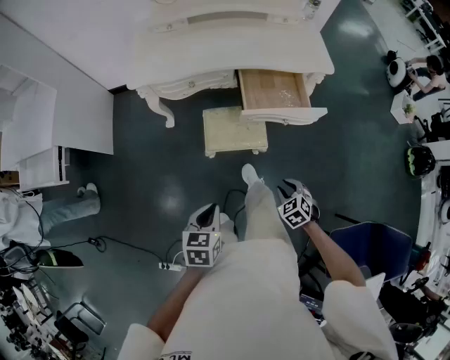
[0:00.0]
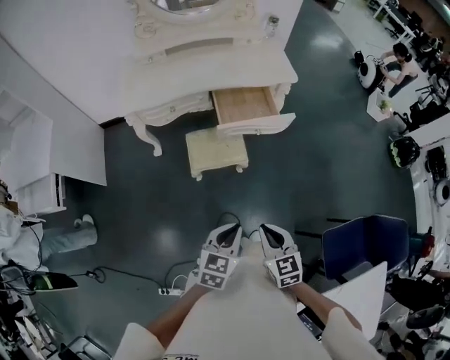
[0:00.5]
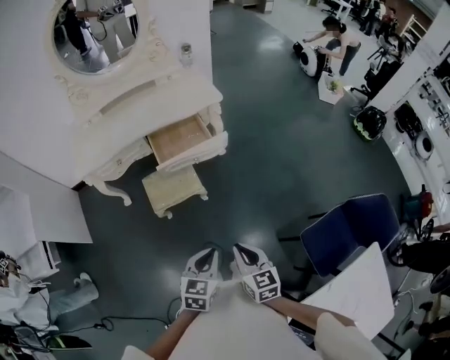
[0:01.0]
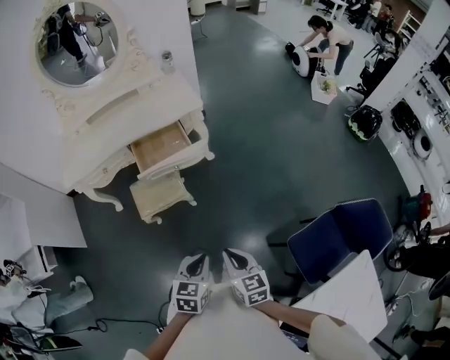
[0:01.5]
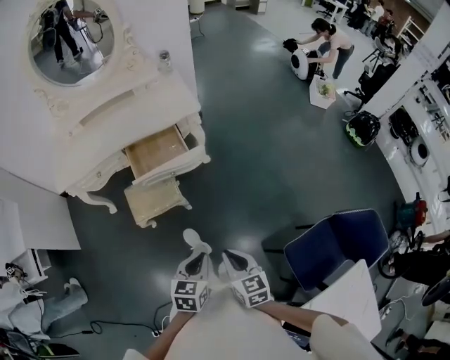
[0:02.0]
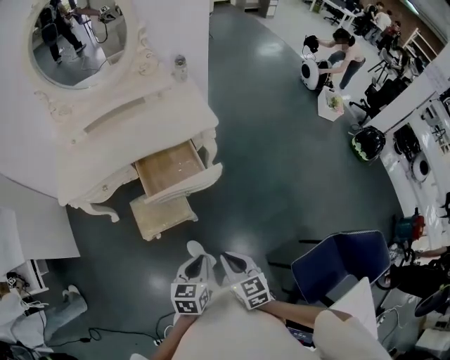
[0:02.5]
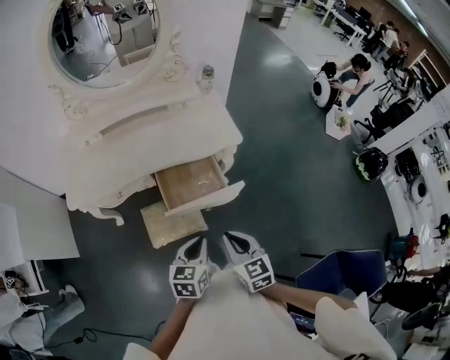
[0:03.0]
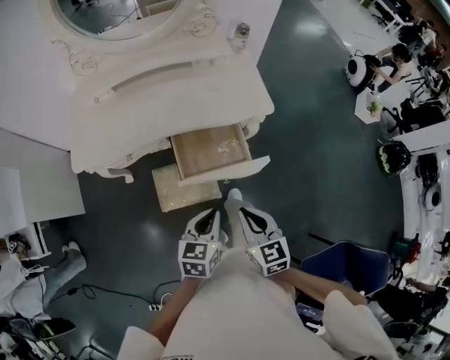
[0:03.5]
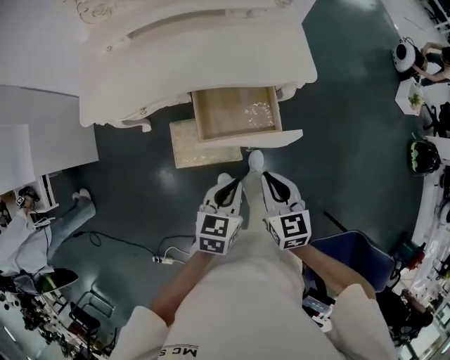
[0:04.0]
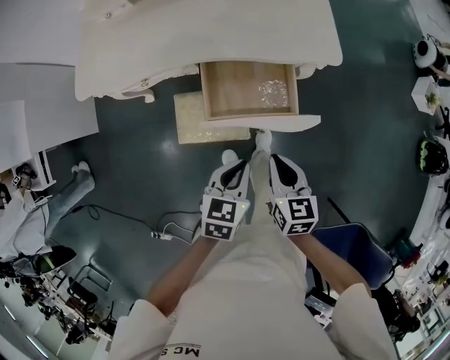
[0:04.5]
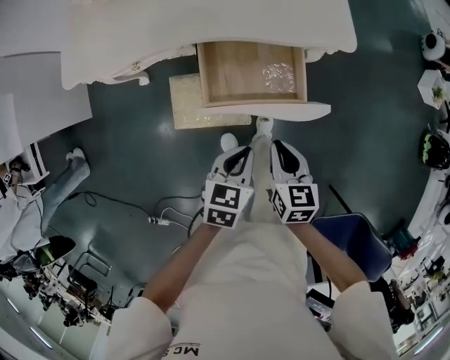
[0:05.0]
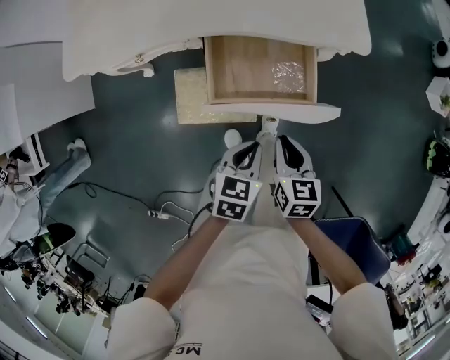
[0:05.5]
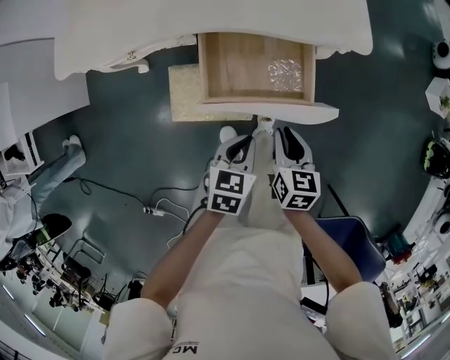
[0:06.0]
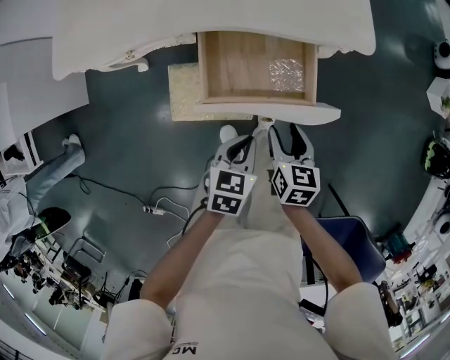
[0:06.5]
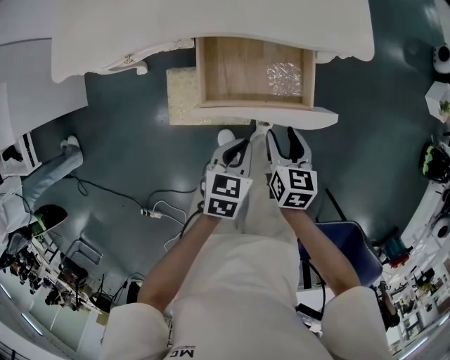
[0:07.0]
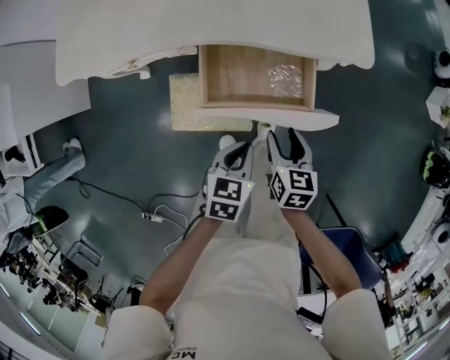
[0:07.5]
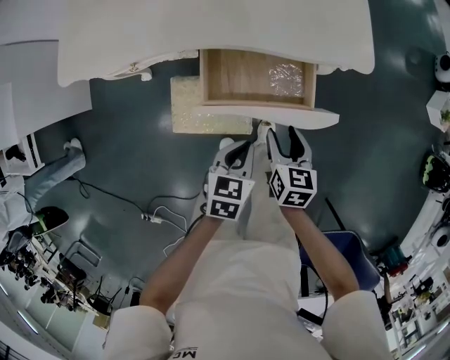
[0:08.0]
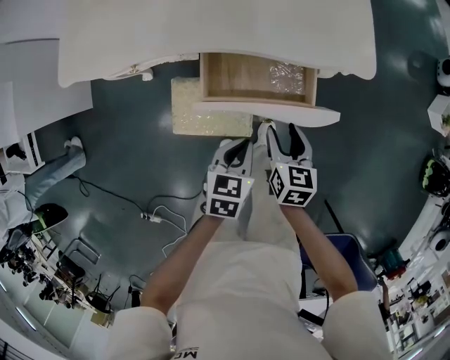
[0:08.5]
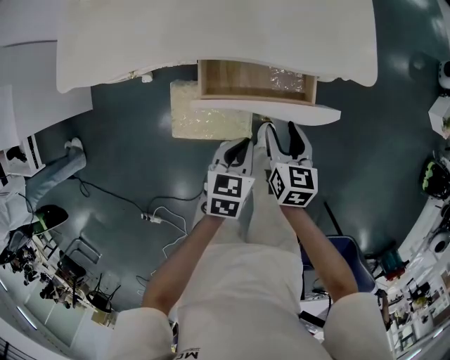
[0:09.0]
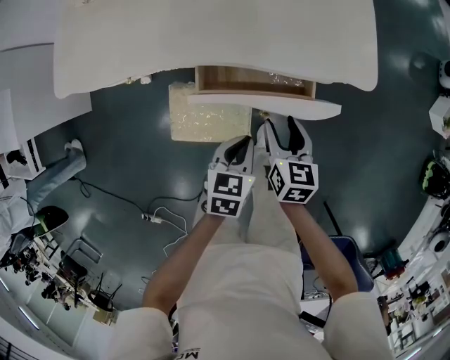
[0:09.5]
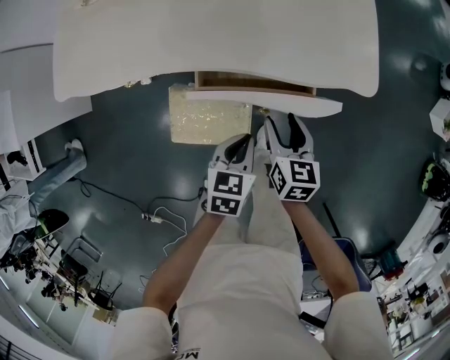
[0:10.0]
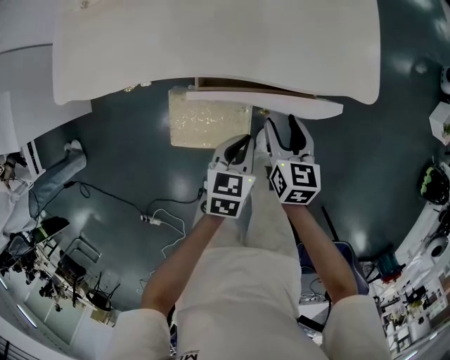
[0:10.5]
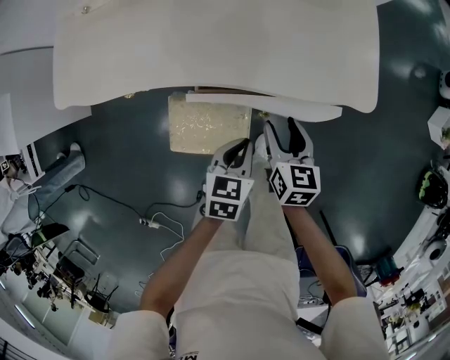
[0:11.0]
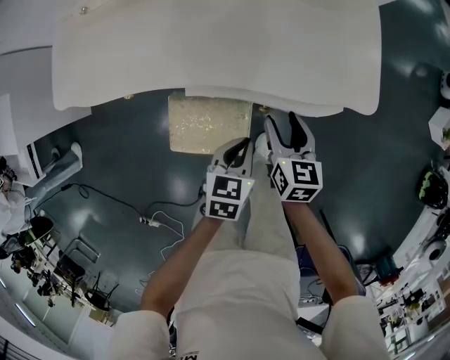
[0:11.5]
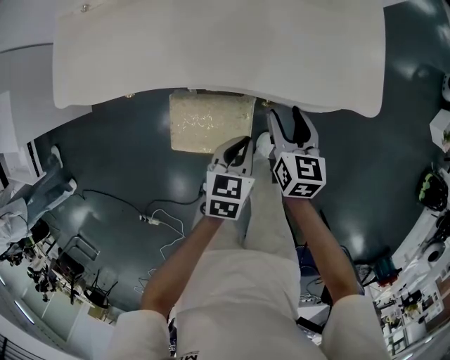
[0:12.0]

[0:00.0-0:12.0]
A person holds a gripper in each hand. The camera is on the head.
0:00.0 to 0:02.0: The left gripper goes approximately 35 cm to the right, and turns by about 20 degrees, while the right gripper travels upward, to the right and backward by roughly 30 cm, twists roughly 50 degrees clockwise, seen from behind, and closes up.
0:02.0 to 0:04.0: The left gripper travels forward and to the left by roughly 35 cm; the right gripper goes roughly 35 cm forward.
0:04.0 to 0:06.0: Both grippers move downward, some 15 cm.
0:06.0 to 0:08.0: The right gripper shifts by roughly 5 cm, and opens its fingers.
0:08.0 to 0:10.0: Both grippers move forward, some 10 cm.
0:10.0 to 0:12.0: The right gripper heads forward, covering approximately 5 cm.

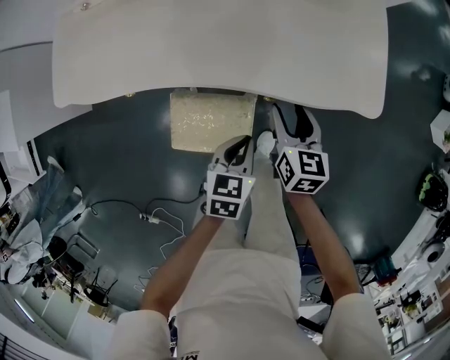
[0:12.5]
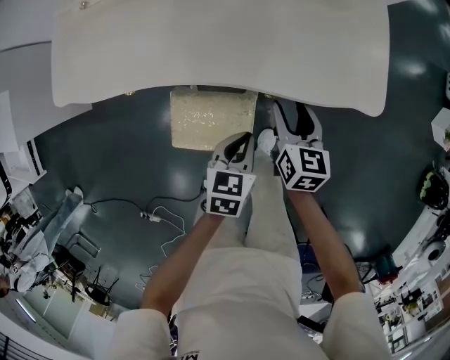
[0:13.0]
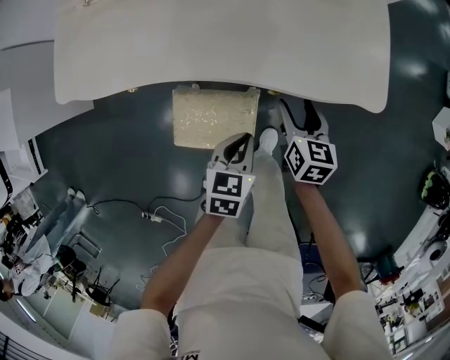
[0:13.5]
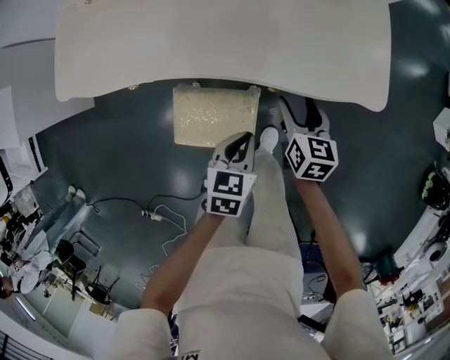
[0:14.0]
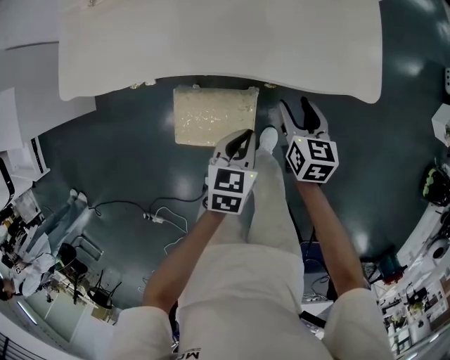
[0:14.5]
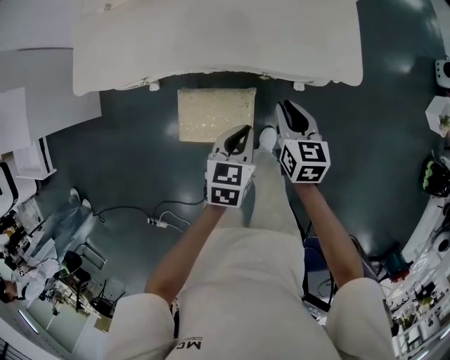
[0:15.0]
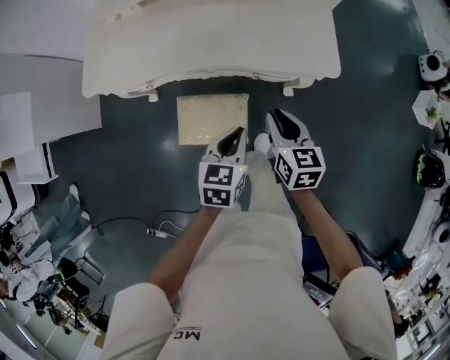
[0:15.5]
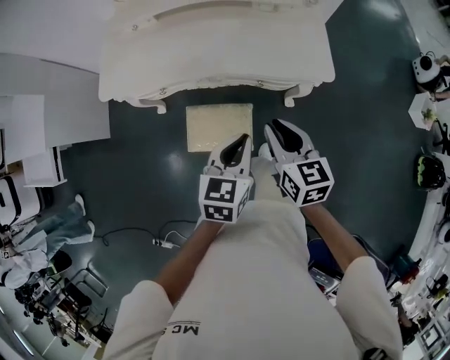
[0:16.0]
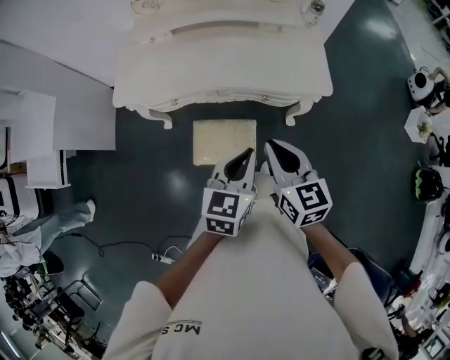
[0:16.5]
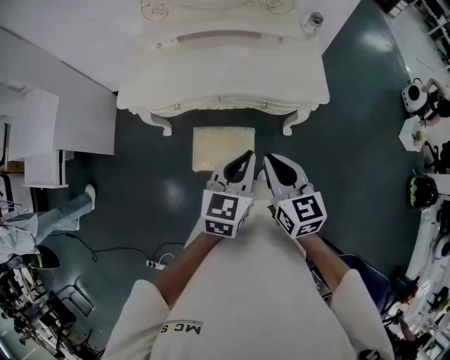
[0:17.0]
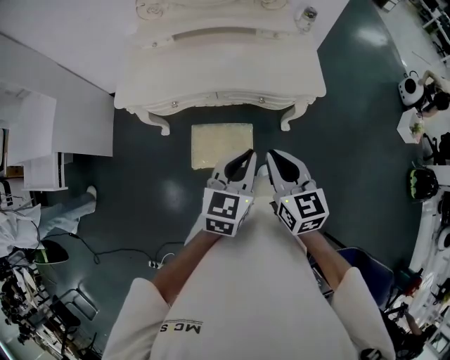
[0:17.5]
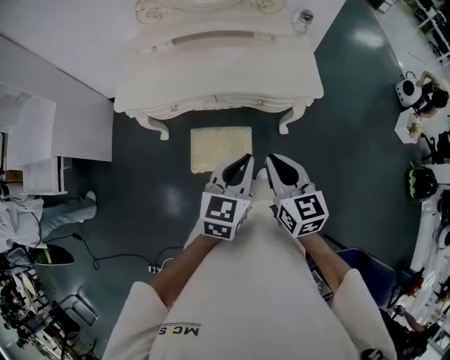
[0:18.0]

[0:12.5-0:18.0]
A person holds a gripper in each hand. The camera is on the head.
0:12.5 to 0:14.5: There are only small adjustments of the grippers.
0:14.5 to 0:16.0: The right gripper travels upward and backward by some 25 cm, and closes. Meanwhile the left gripper travels upward by about 20 cm.
0:16.0 to 0:18.0: The grippers both shift backward and upward by some 10 cm.

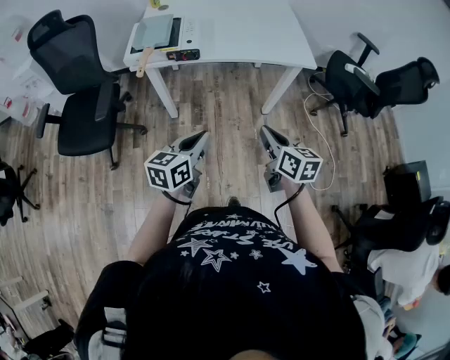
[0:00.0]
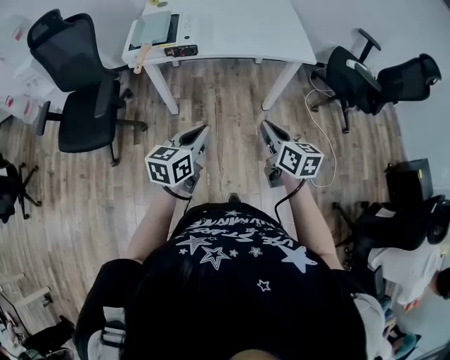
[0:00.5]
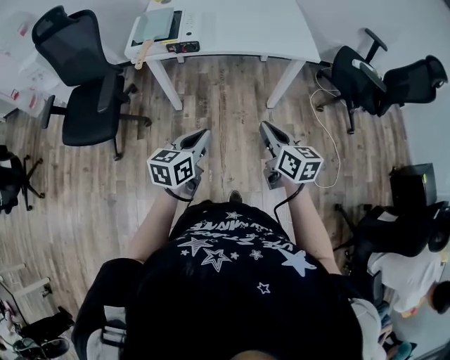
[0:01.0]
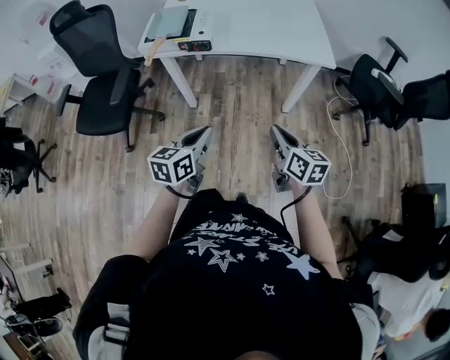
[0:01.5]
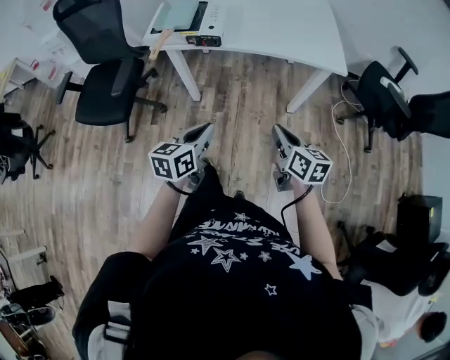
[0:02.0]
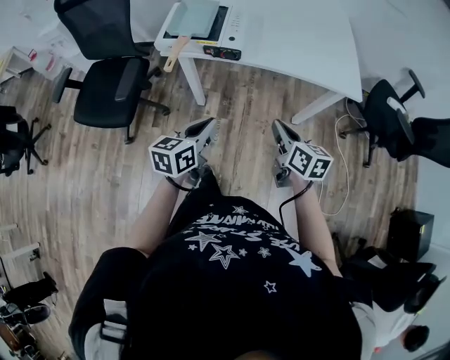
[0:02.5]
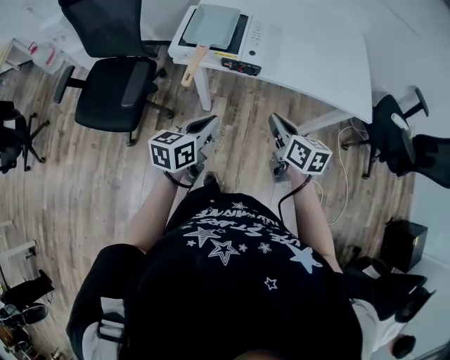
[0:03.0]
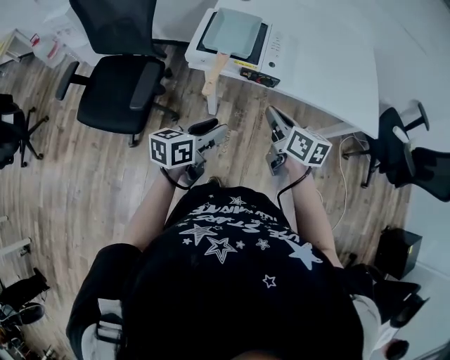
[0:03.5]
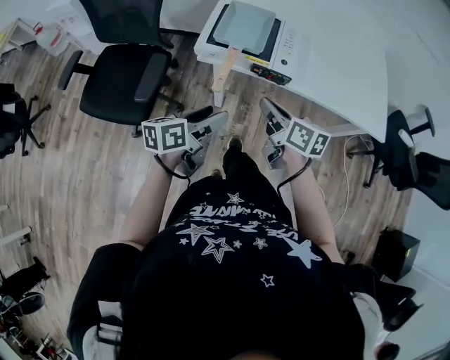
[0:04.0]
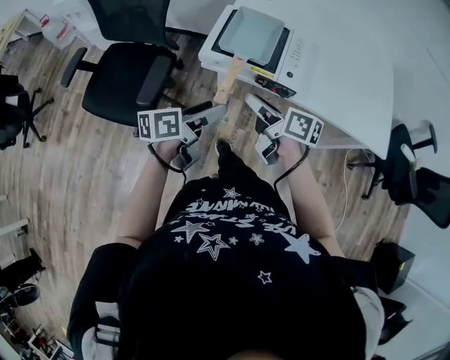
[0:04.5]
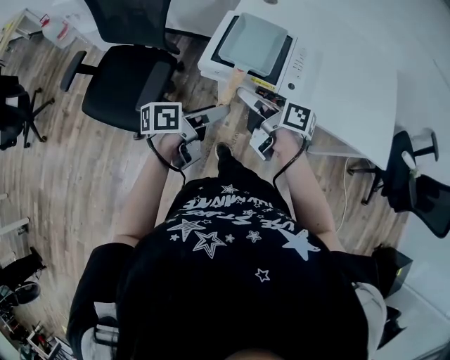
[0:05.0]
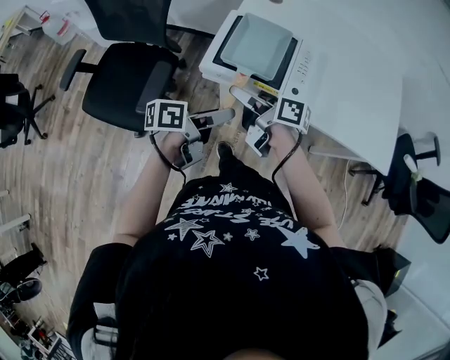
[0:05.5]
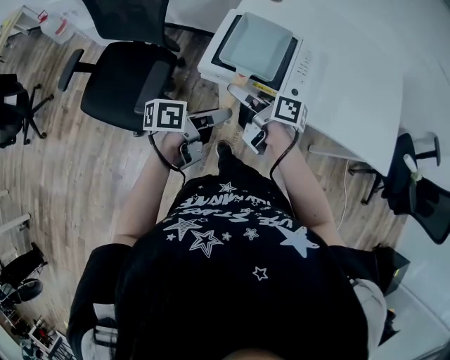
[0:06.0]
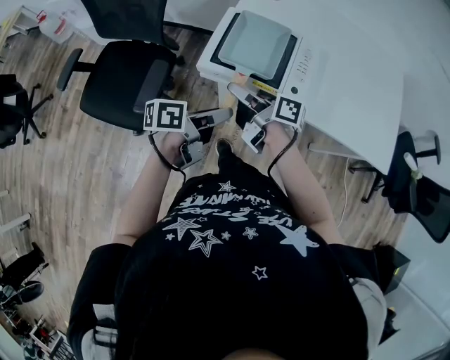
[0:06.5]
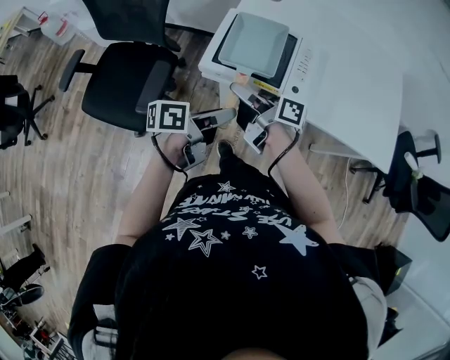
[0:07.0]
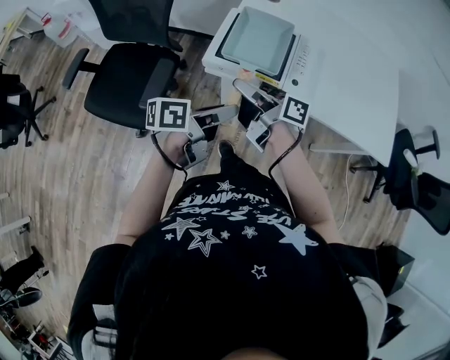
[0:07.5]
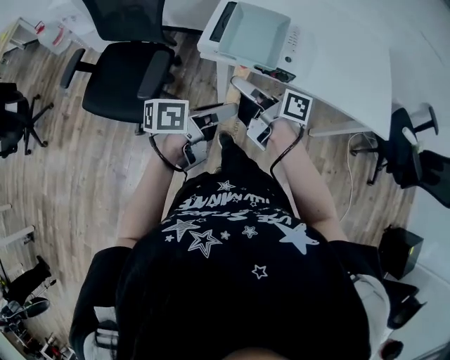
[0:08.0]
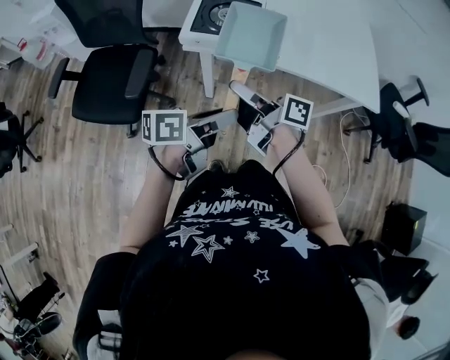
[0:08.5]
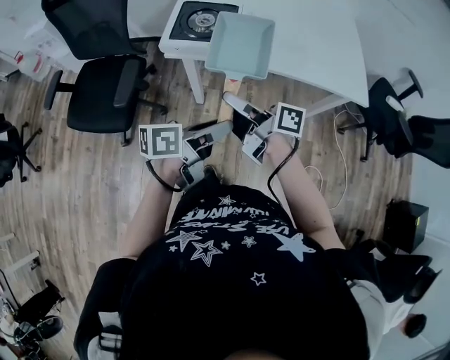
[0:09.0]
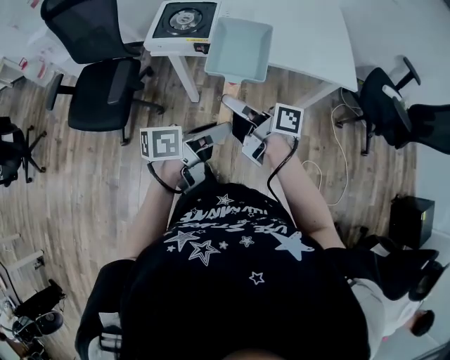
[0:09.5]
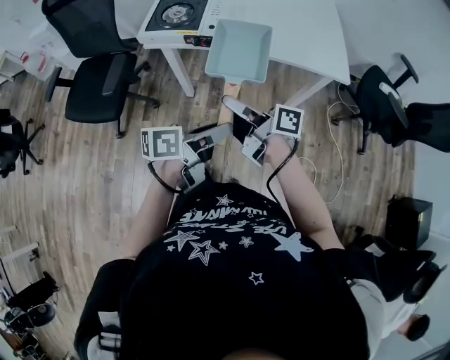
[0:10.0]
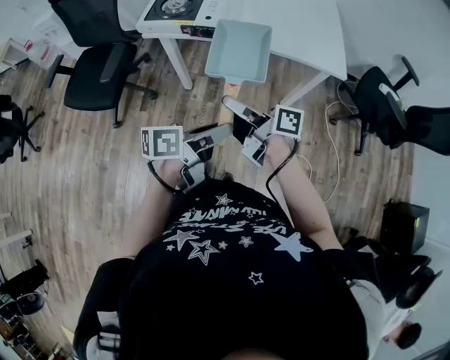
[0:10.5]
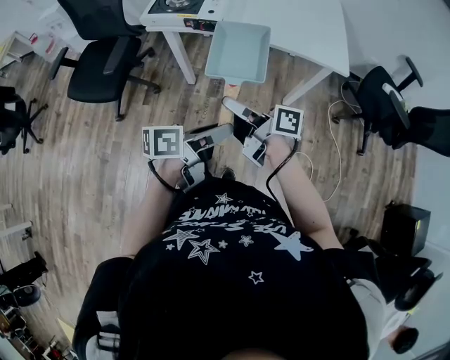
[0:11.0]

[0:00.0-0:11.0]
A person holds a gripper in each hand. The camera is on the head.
0:00.0 to 0:02.0: The right gripper changes place by roughly 5 cm.
0:02.0 to 0:03.5: The grippers both shift to the left and forward by roughly 30 cm. The left gripper opens.
0:03.5 to 0:05.5: The right gripper is displaced to the left and forward by roughly 20 cm, swivels roughly 40 degrees, and opens; the left gripper moves forward, about 15 cm, turns by approximately 30 degrees, and opens its fingers.
0:05.5 to 0:07.5: The left gripper moves some 5 cm, and closes. Meanwhile the right gripper closes its fingers.
0:07.5 to 0:09.0: Both grippers travel together backward and to the right, approximately 20 cm.
0:09.0 to 0:11.0: Both grippers travel together to the right and backward, some 25 cm.
